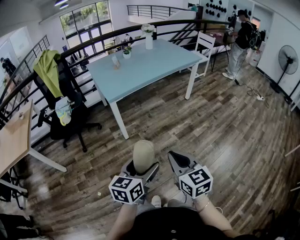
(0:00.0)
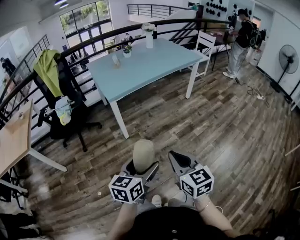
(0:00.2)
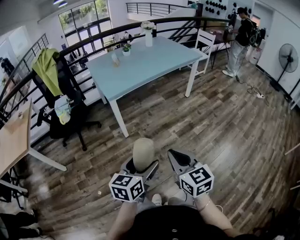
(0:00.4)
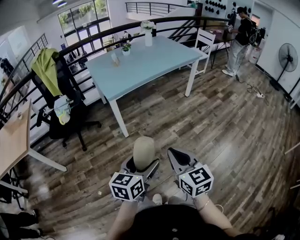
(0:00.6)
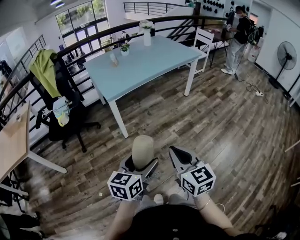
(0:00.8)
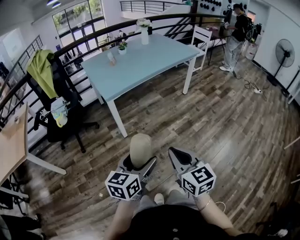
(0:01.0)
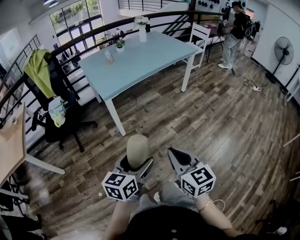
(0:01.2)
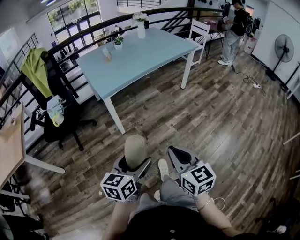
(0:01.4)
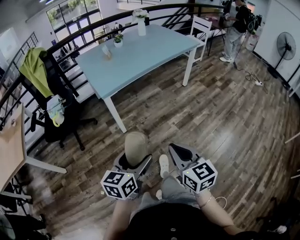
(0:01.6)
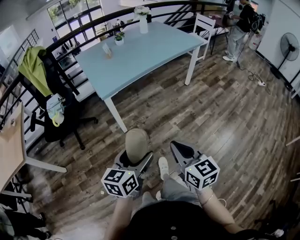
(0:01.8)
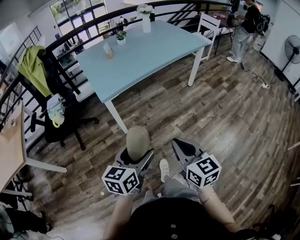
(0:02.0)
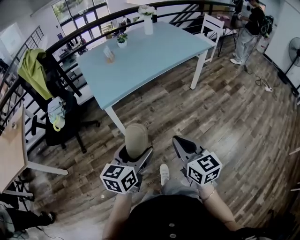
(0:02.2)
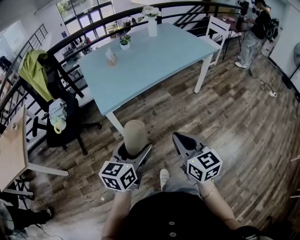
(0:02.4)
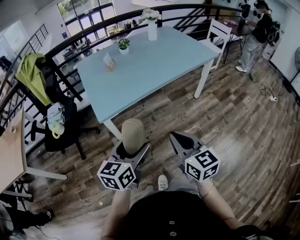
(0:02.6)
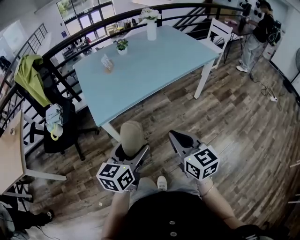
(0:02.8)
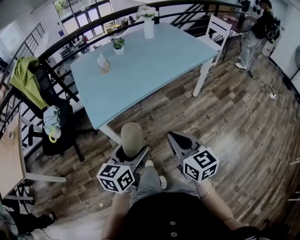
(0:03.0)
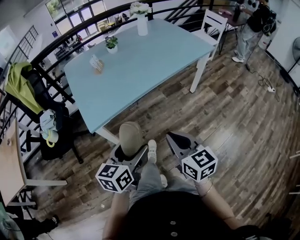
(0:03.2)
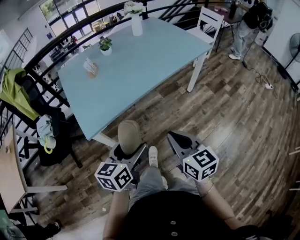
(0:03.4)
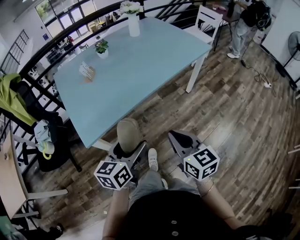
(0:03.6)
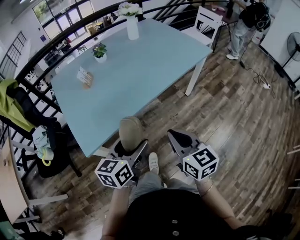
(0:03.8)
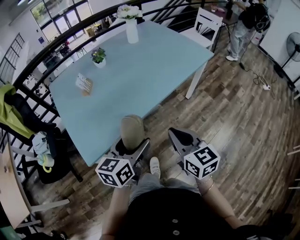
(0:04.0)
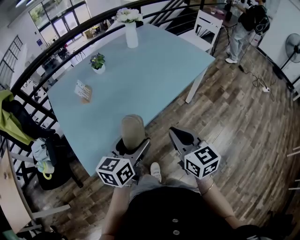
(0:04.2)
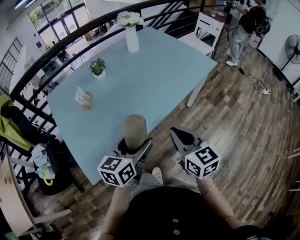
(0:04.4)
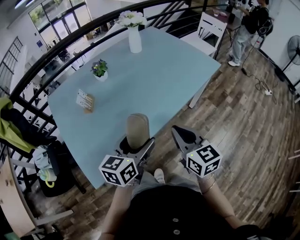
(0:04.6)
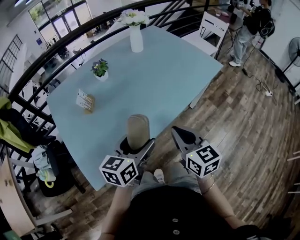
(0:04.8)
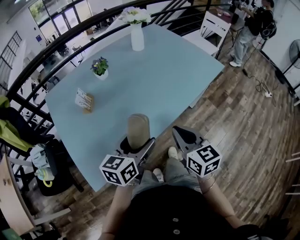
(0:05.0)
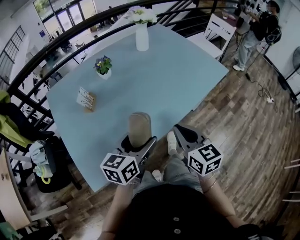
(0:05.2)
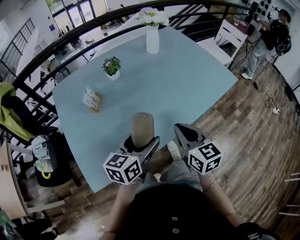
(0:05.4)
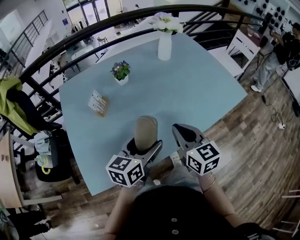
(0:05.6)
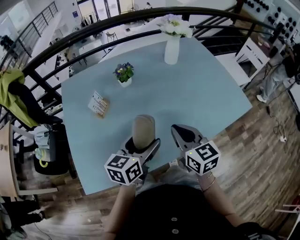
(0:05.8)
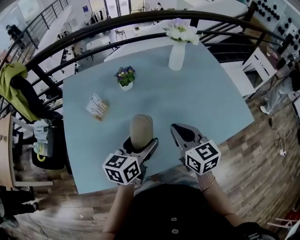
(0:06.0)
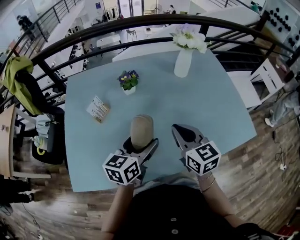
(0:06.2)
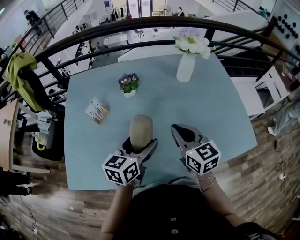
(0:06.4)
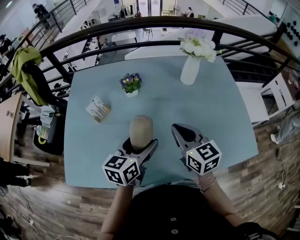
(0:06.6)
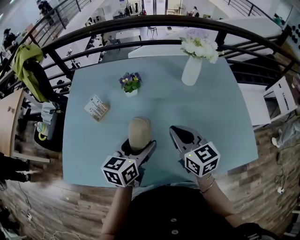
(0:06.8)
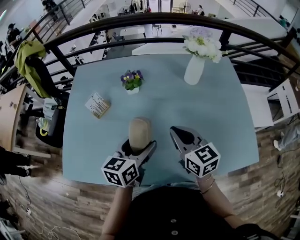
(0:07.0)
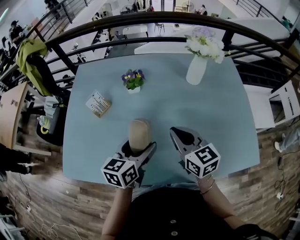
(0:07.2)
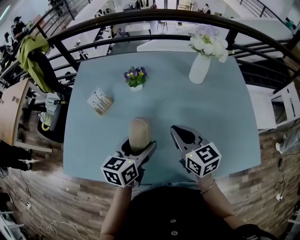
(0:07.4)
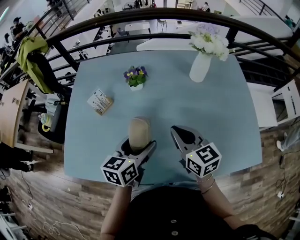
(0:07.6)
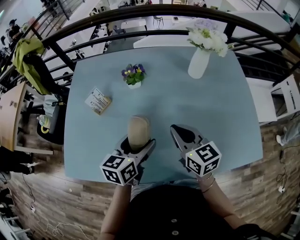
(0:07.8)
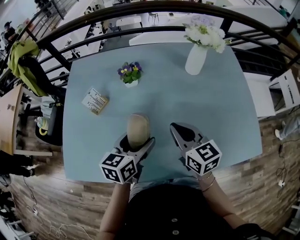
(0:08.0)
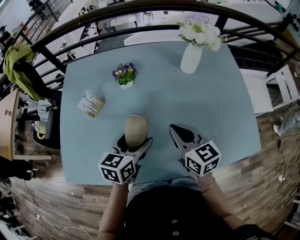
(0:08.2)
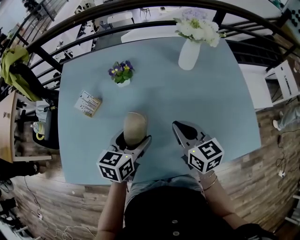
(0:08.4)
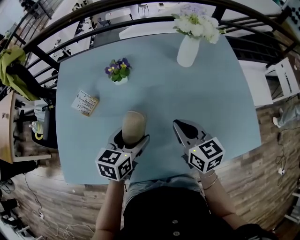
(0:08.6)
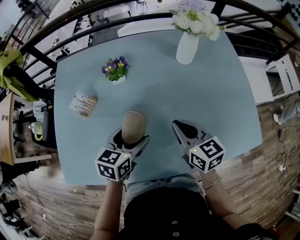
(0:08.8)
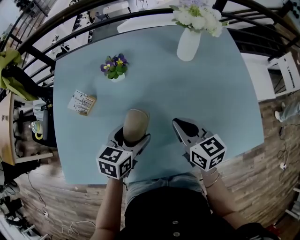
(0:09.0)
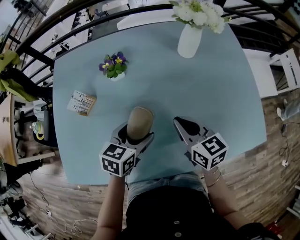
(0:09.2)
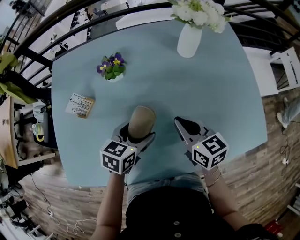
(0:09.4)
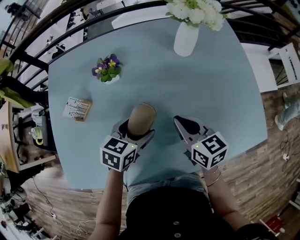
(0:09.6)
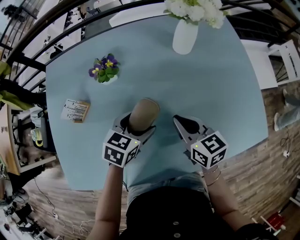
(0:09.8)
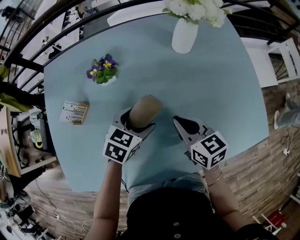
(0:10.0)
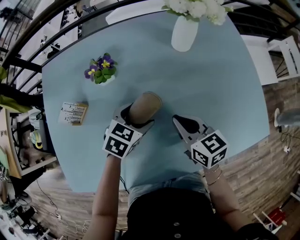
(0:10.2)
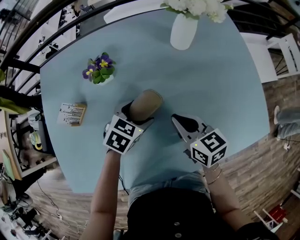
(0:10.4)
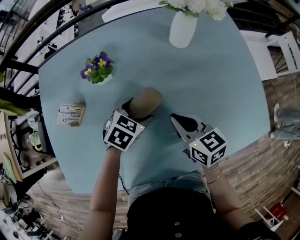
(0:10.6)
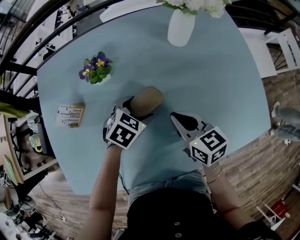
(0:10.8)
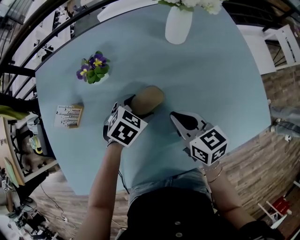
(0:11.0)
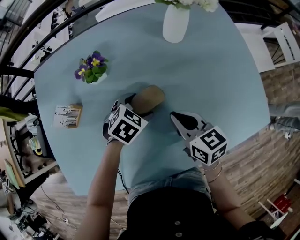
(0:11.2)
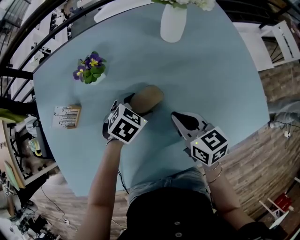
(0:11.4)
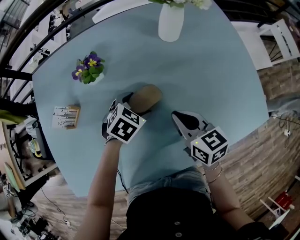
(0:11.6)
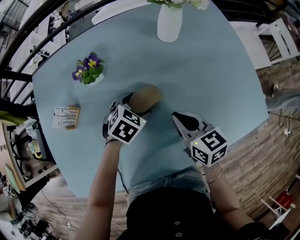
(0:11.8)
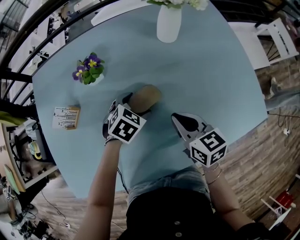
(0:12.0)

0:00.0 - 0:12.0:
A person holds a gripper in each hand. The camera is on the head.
0:00.0 - 0:01.6: Both grippers travel together forward, approximately 10 cm.
0:01.6 - 0:03.0: Both grippers travel together forward, some 30 cm.
0:03.0 - 0:04.4: The grippers both shift forward by roughly 30 cm.
0:04.4 - 0:06.0: Both grippers move forward, approximately 25 cm. The left gripper swivels about 20 degrees, while the right gripper turns by approximately 20 degrees.
0:06.0 - 0:07.6: The left gripper moves forward, approximately 5 cm. Meanwhile the right gripper travels forward by approximately 10 cm.
0:07.6 - 0:09.0: The left gripper shifts by approximately 5 cm, and turns by roughly 20 degrees, while the right gripper changes place by roughly 5 cm.
0:09.0 - 0:10.4: The right gripper heads downward, covering roughly 5 cm, while the left gripper is displaced forward and downward by approximately 10 cm, and turns by roughly 30 degrees.
0:10.4 - 0:12.0: There are only small adjustments of the grippers.

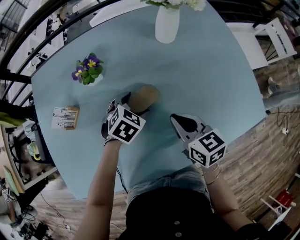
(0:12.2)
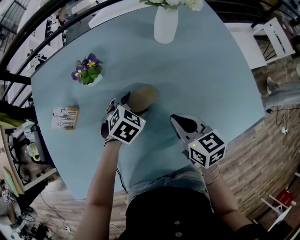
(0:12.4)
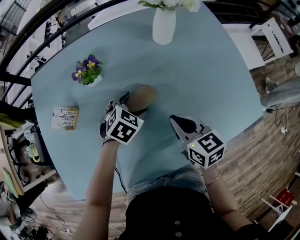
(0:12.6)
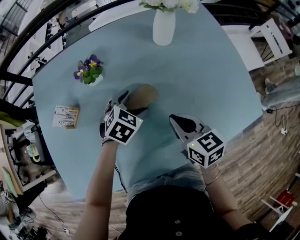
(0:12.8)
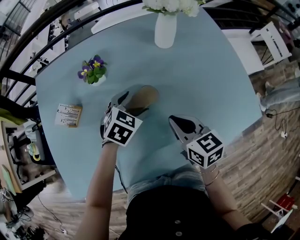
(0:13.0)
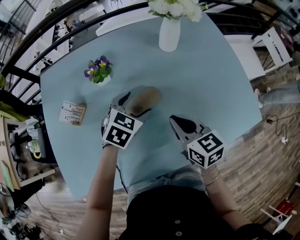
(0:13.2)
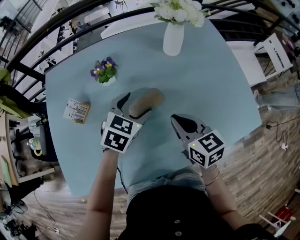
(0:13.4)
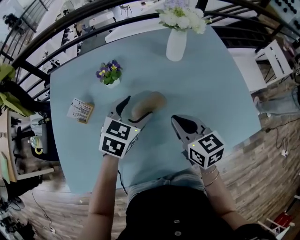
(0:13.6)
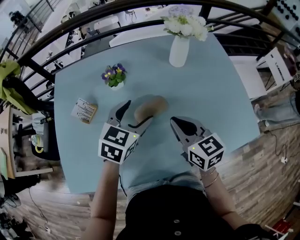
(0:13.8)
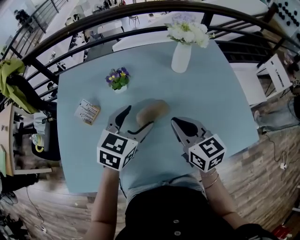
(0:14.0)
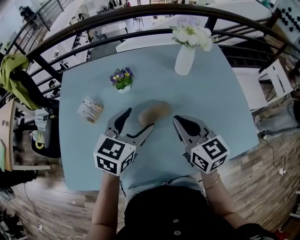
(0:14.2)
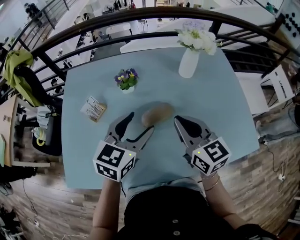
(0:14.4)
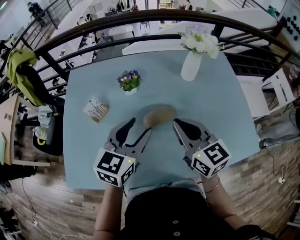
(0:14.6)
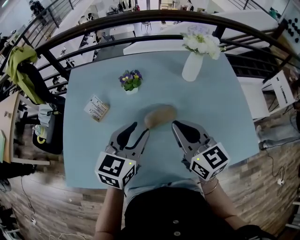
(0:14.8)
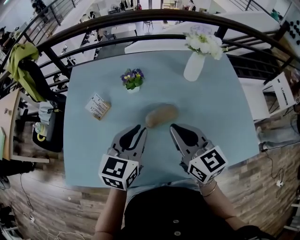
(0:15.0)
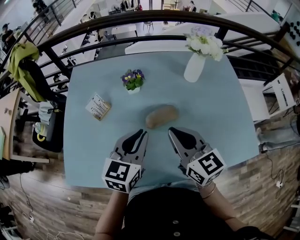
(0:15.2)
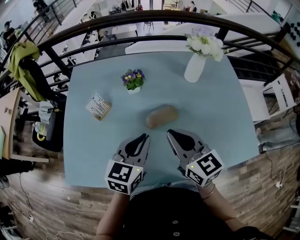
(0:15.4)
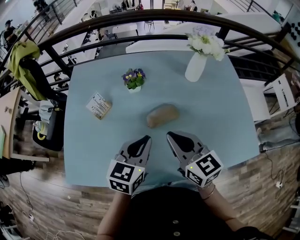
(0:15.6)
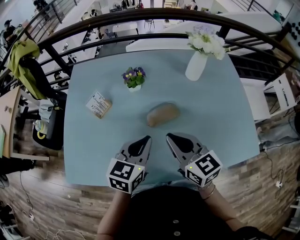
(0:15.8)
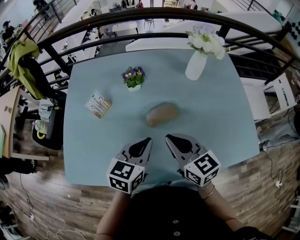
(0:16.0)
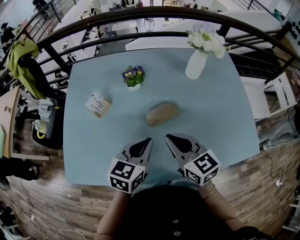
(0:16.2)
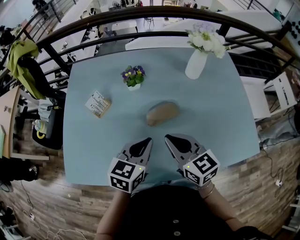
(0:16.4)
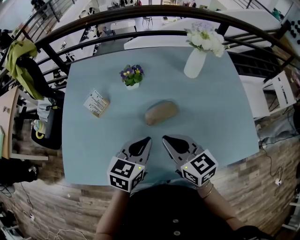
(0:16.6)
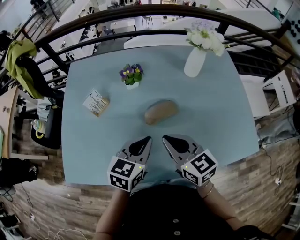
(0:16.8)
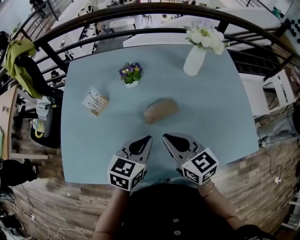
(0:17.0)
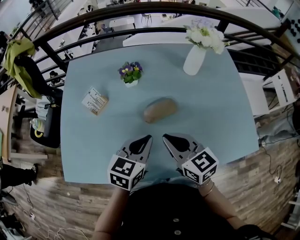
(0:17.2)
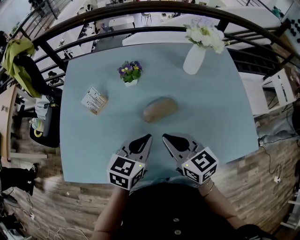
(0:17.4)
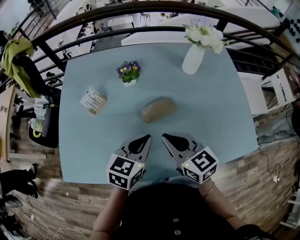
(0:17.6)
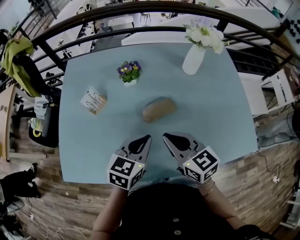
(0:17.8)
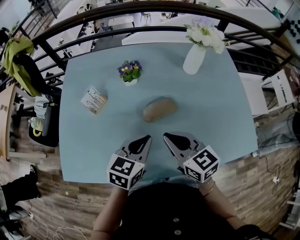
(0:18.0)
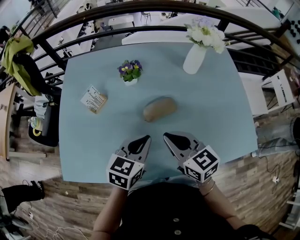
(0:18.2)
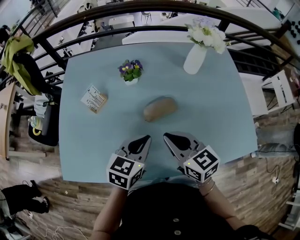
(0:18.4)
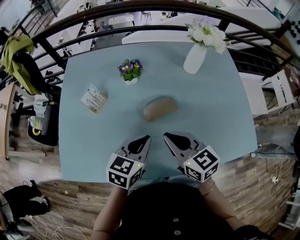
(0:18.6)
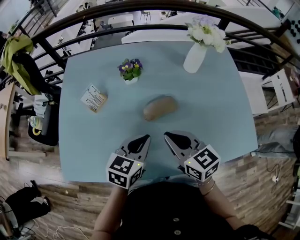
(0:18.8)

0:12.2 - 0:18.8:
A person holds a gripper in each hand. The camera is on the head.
0:12.2 - 0:13.8: The right gripper moves upward, roughly 10 cm. Meanwhile the left gripper heads upward, covering approximately 20 cm, and changes its angle by about 30 degrees.
0:13.8 - 0:15.4: The left gripper is displaced backward by about 10 cm, changes its angle by about 20 degrees, and closes its fingers; the right gripper travels to the left and upward by about 10 cm.
0:15.4 - 0:17.2: The right gripper shifts roughly 5 cm downward.
0:17.2 - 0:18.8: The grippers stay close to where they were, moving slightly.

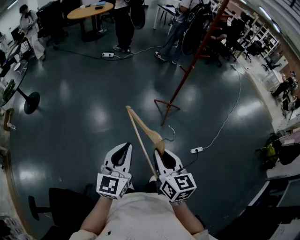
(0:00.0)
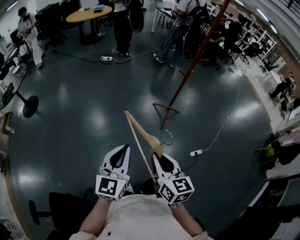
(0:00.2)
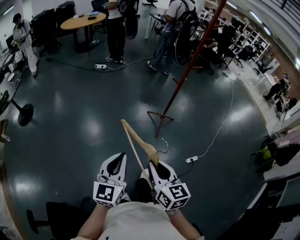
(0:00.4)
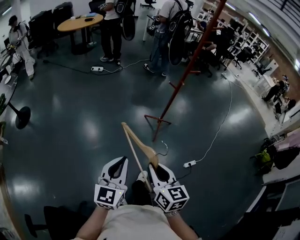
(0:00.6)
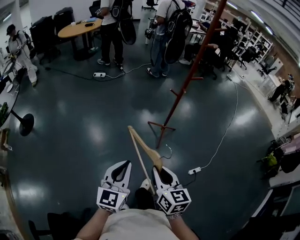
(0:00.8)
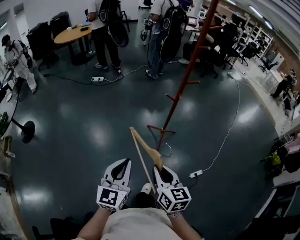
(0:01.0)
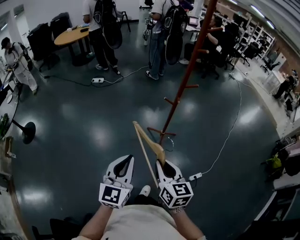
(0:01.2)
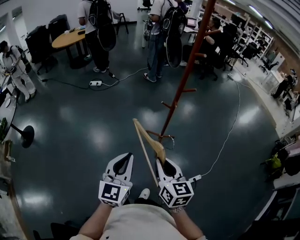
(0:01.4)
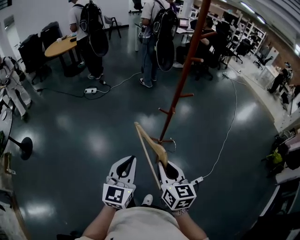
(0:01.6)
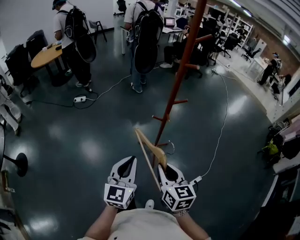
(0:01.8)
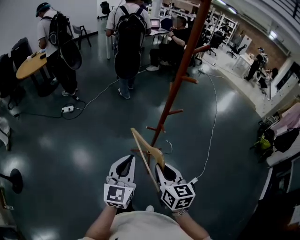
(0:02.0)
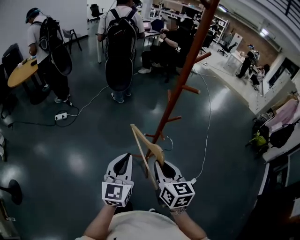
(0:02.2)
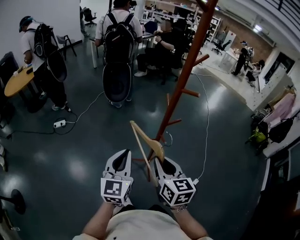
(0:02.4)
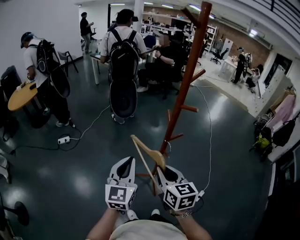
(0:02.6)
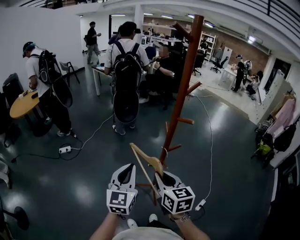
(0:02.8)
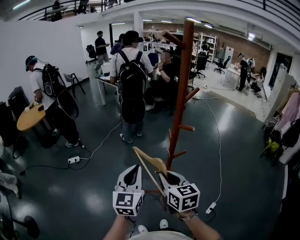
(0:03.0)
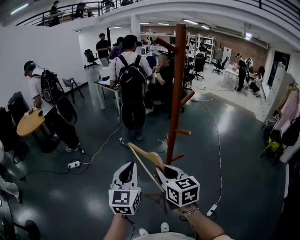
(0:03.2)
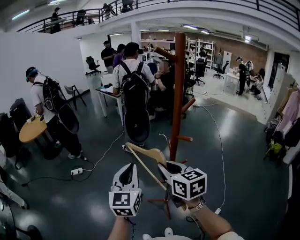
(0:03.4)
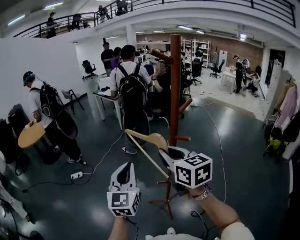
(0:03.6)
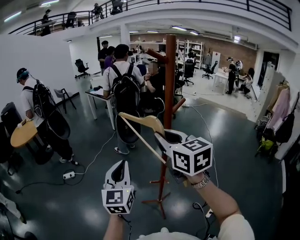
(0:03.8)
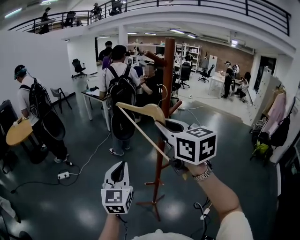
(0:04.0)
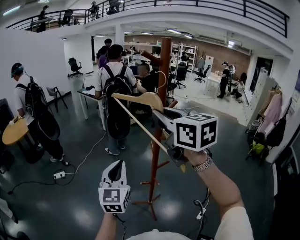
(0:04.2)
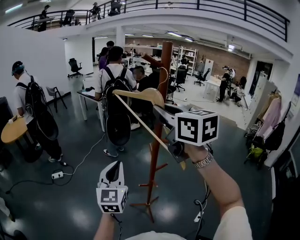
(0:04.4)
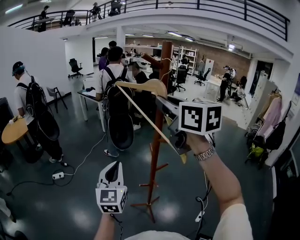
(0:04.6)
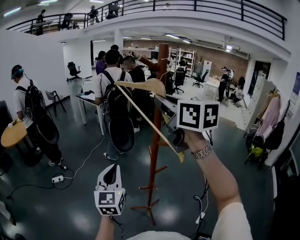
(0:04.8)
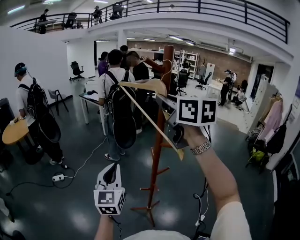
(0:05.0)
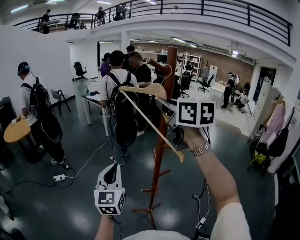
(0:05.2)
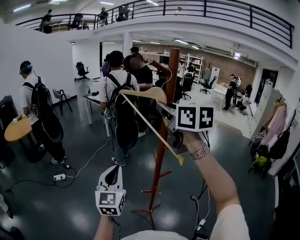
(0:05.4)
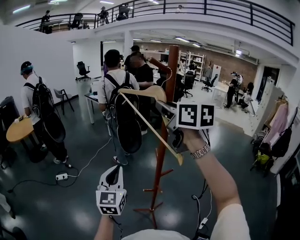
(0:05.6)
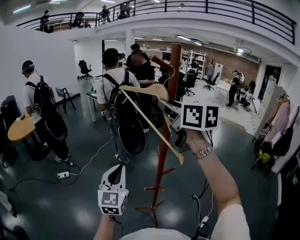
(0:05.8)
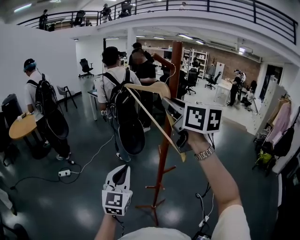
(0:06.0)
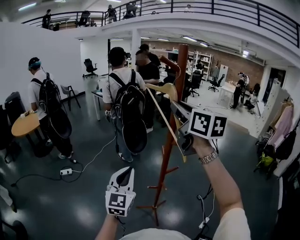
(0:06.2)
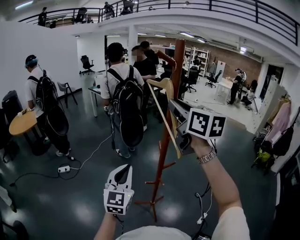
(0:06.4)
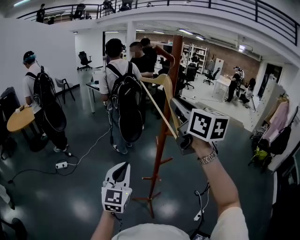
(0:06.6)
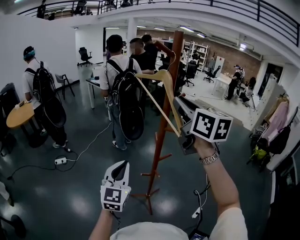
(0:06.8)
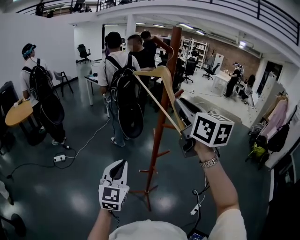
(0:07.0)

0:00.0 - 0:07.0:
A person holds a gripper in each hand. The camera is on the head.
0:00.0 - 0:01.4: The grippers both shift forward and to the right by approximately 35 cm.
0:01.4 - 0:02.8: Both grippers move forward, about 35 cm.
0:02.8 - 0:04.2: The left gripper is displaced upward by roughly 10 cm. The right gripper heads upward, covering approximately 35 cm.
0:04.2 - 0:05.6: The right gripper is displaced forward by some 5 cm.
0:05.6 - 0:07.0: The right gripper moves backward and to the right, about 10 cm. The left gripper is displaced backward by roughly 5 cm.
